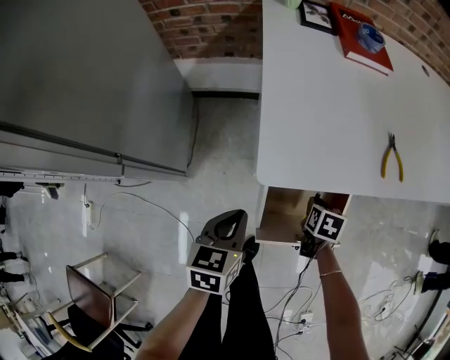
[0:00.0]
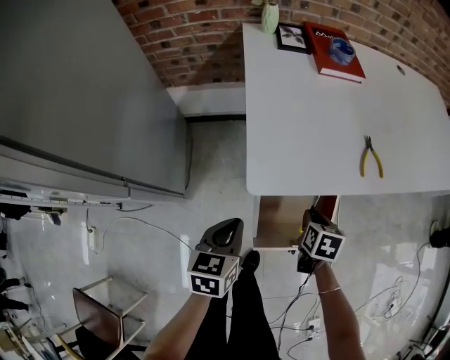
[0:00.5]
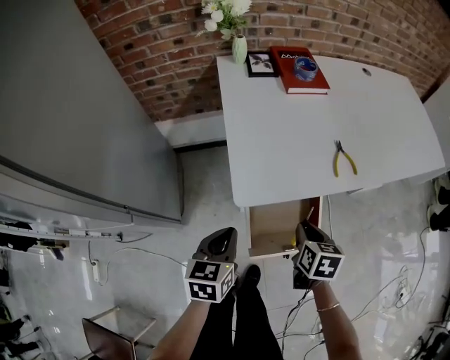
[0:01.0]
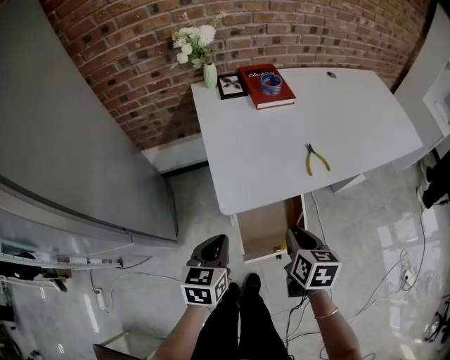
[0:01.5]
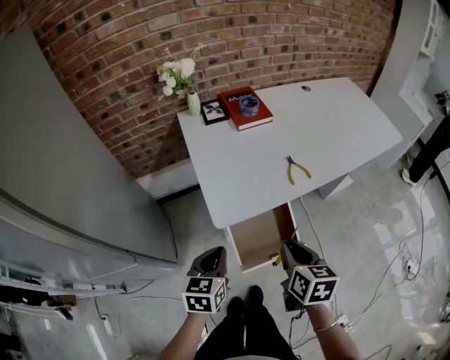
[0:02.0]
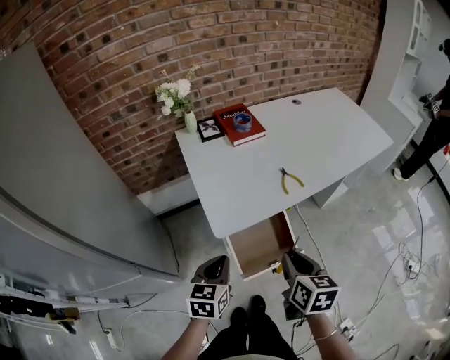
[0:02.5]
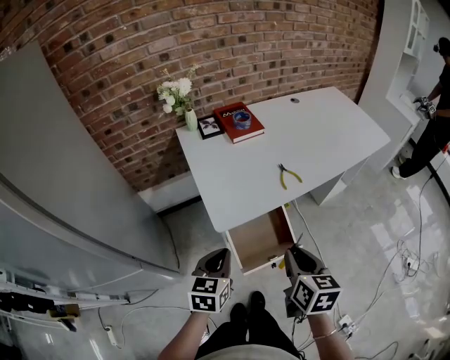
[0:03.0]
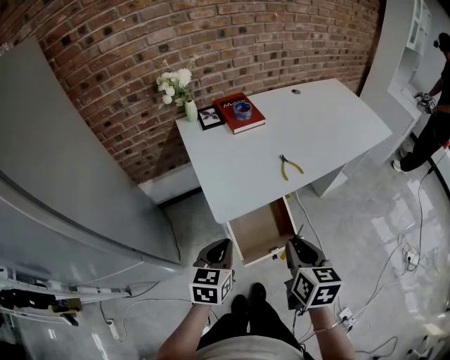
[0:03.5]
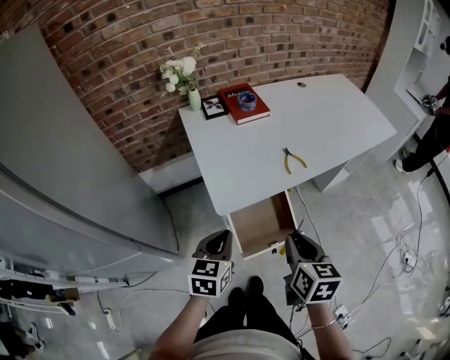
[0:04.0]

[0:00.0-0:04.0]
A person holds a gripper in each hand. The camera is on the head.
0:00.0 to 0:02.0: The left gripper shifts roughly 15 cm upward, and changes its angle by roughly 20 degrees; the right gripper travels upward and backward by approximately 35 cm, and turns by some 30 degrees.
0:02.0 to 0:04.0: The right gripper ends up about 5 cm from where it was.

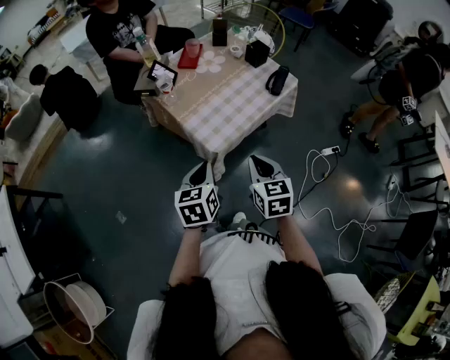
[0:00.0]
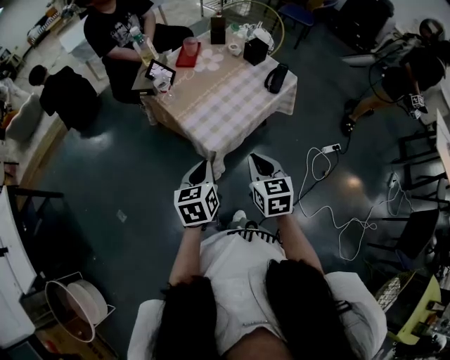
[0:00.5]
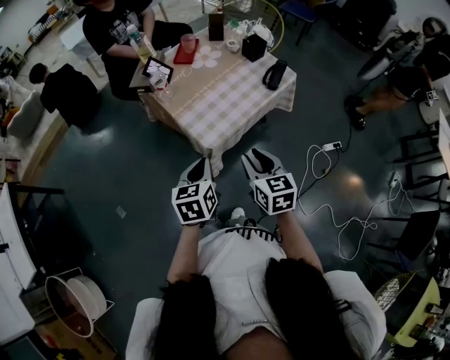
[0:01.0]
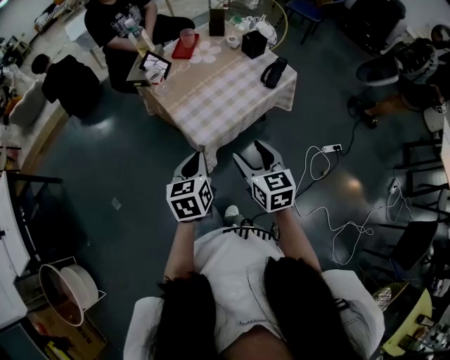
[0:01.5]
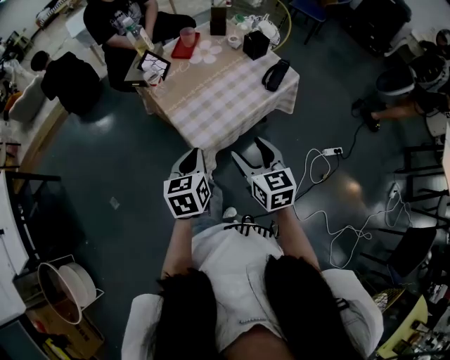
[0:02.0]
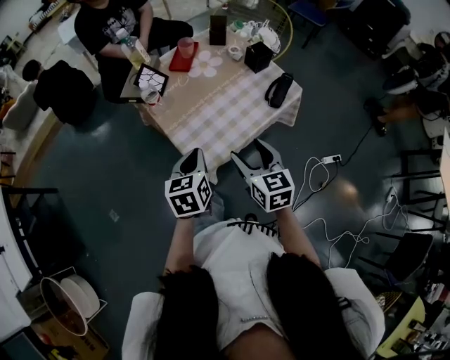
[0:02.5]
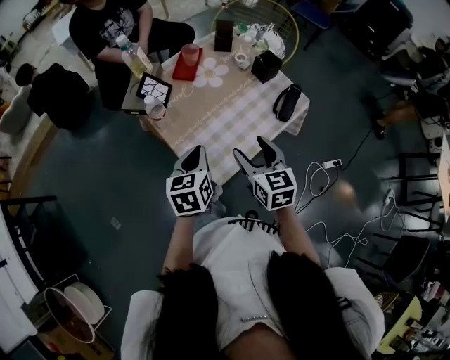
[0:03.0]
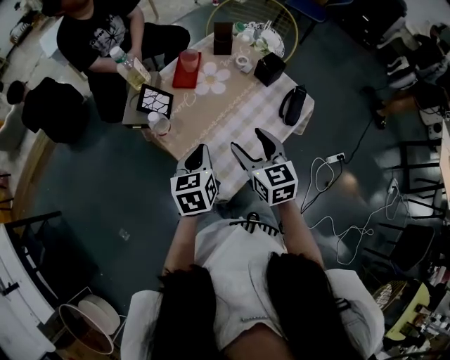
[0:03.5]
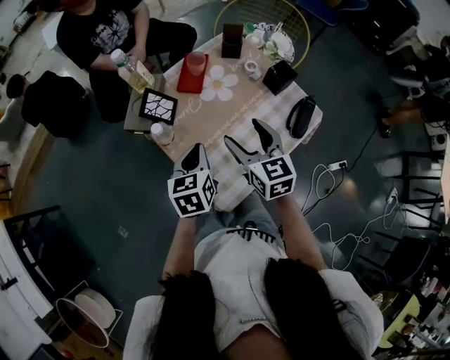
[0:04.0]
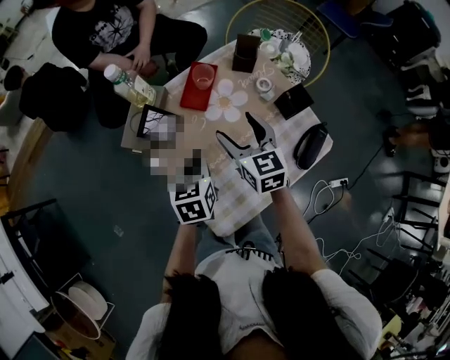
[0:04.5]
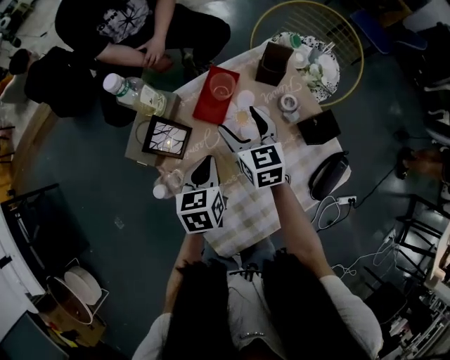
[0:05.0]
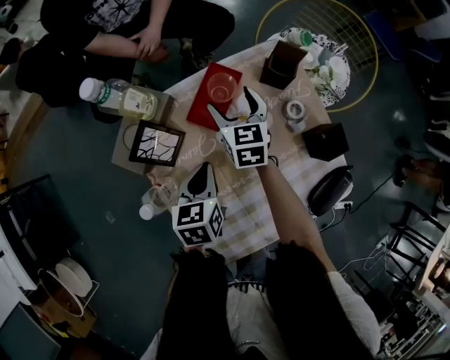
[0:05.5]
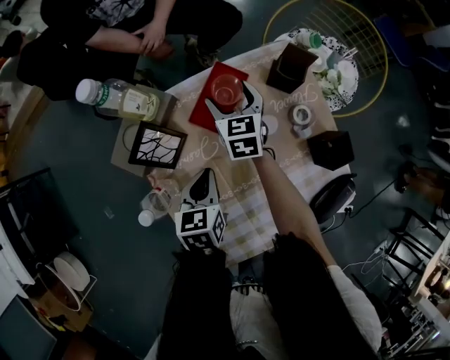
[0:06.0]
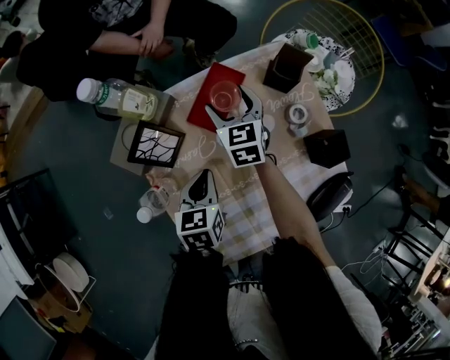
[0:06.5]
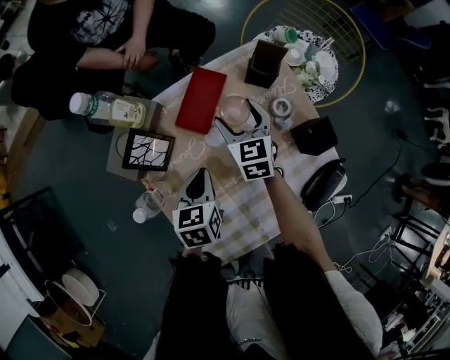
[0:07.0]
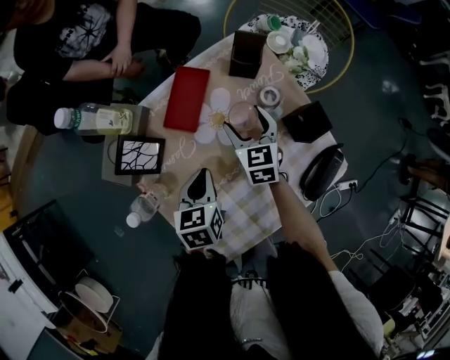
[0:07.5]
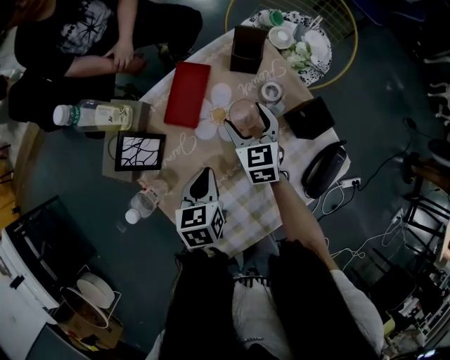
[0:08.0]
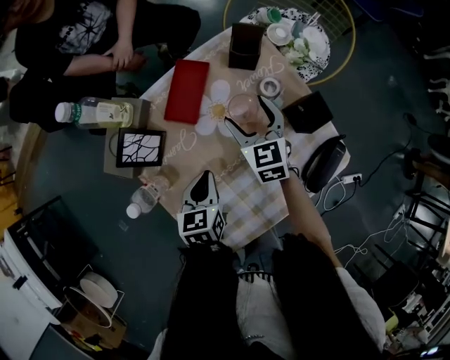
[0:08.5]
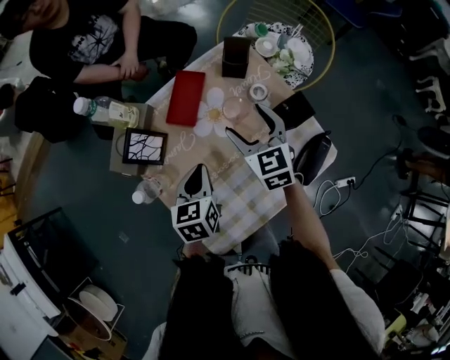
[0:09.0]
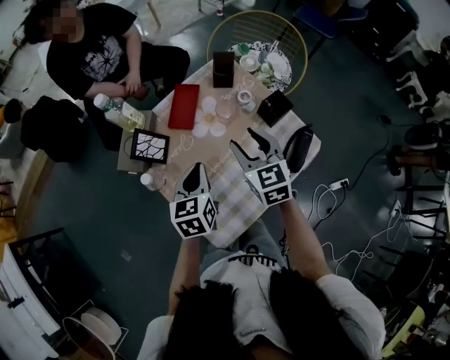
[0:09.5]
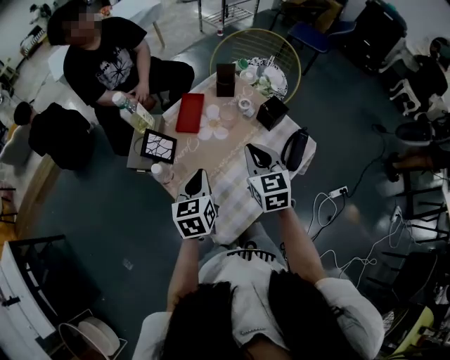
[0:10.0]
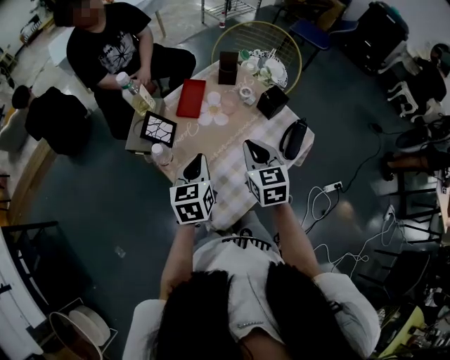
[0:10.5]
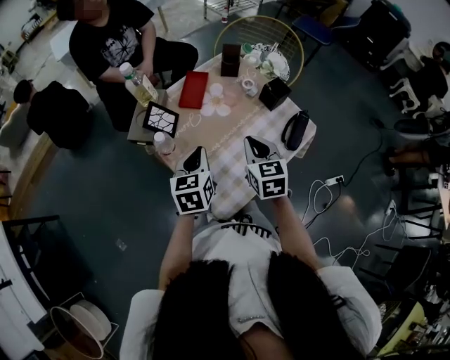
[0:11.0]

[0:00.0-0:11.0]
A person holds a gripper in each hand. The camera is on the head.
0:00.0 to 0:02.0: The left gripper ends up some 5 cm from where it was, while the right gripper changes place by approximately 5 cm, and opens up.
0:02.0 to 0:03.5: Both grippers move forward, about 25 cm.
0:03.5 to 0:05.5: The right gripper moves forward, approximately 40 cm, while the left gripper moves forward and downward, about 25 cm, and rotates some 20 degrees.
0:05.5 to 0:07.5: The left gripper changes place by approximately 5 cm. Meanwhile the right gripper is displaced to the right and backward by some 15 cm.
0:07.5 to 0:09.0: The left gripper shifts by roughly 5 cm. The right gripper travels upward and backward by about 10 cm.
0:09.0 to 0:11.0: The right gripper heads backward, covering some 20 cm, and closes up; the left gripper shifts approximately 15 cm backward and upward.

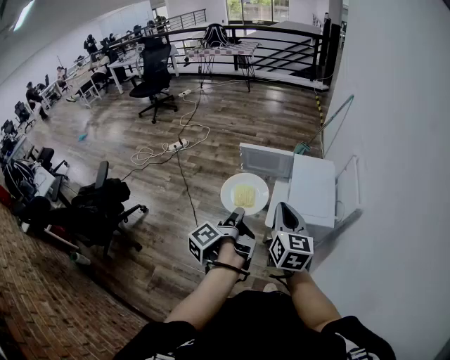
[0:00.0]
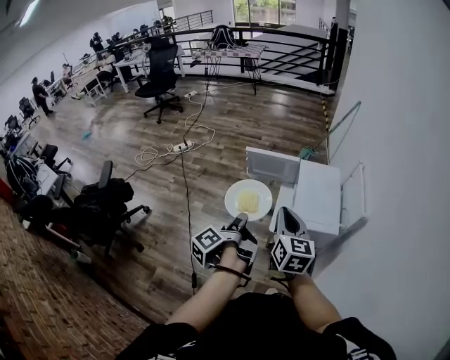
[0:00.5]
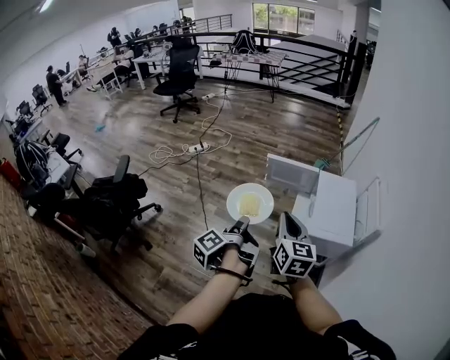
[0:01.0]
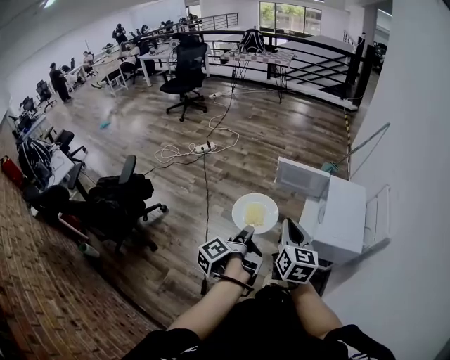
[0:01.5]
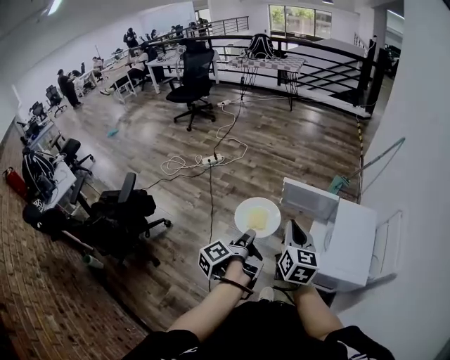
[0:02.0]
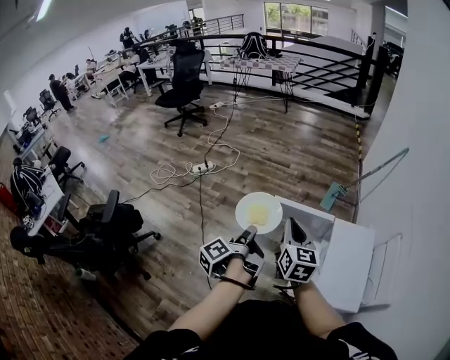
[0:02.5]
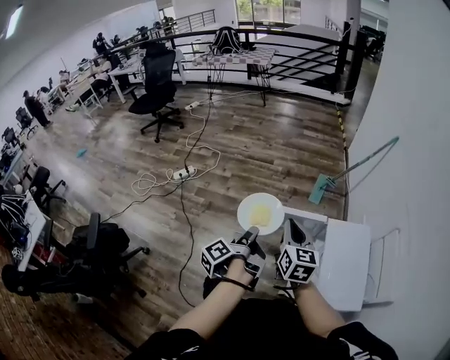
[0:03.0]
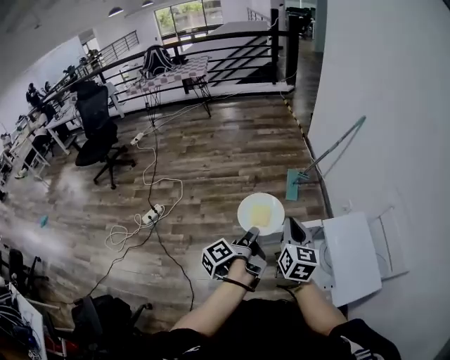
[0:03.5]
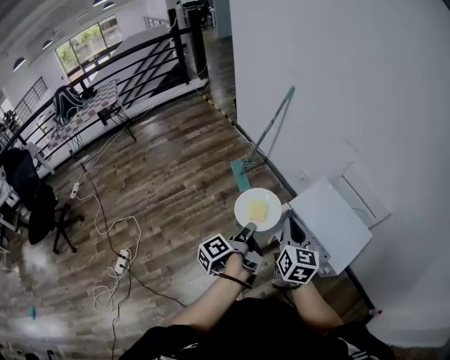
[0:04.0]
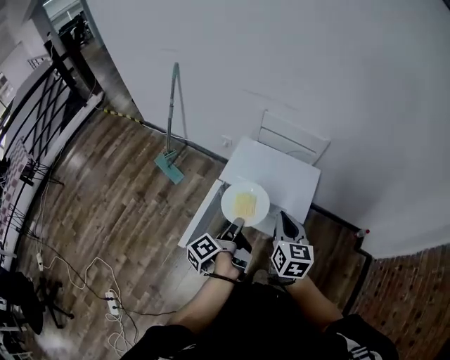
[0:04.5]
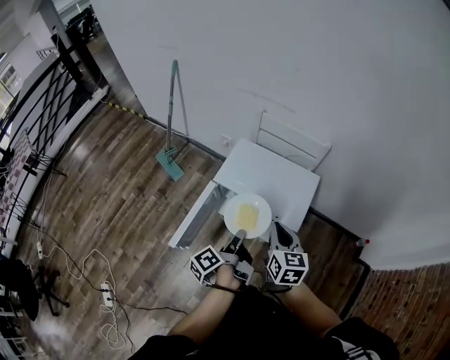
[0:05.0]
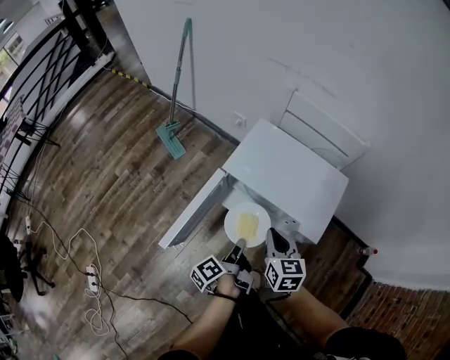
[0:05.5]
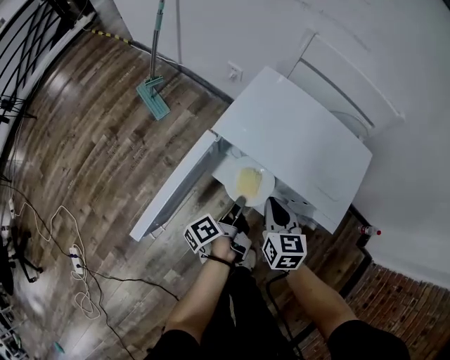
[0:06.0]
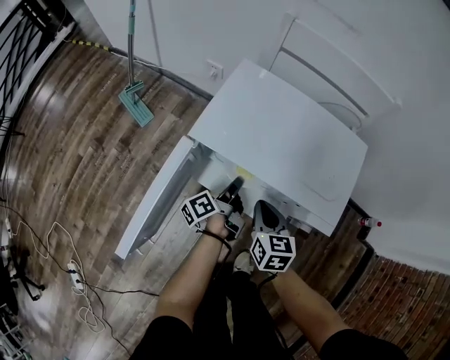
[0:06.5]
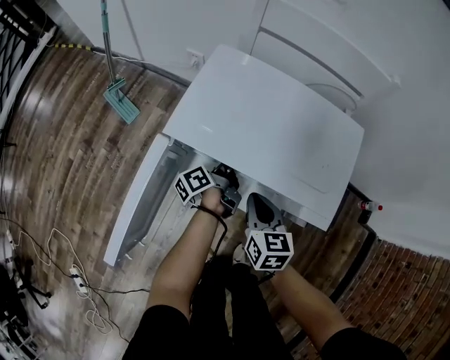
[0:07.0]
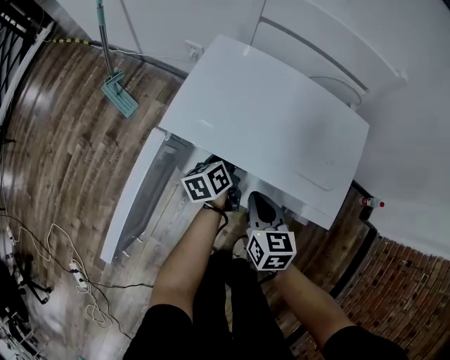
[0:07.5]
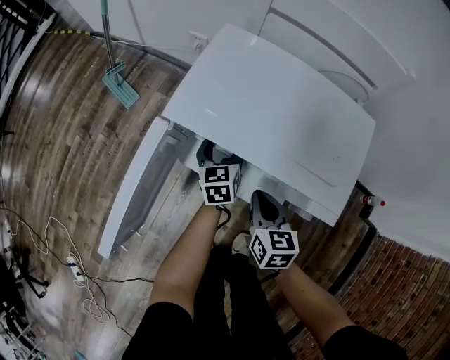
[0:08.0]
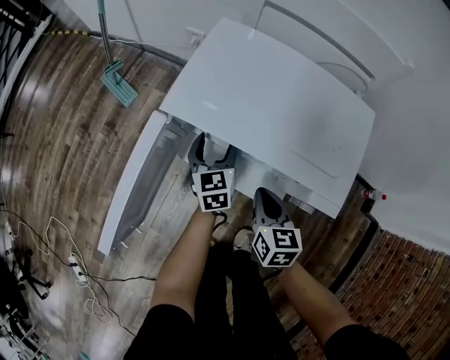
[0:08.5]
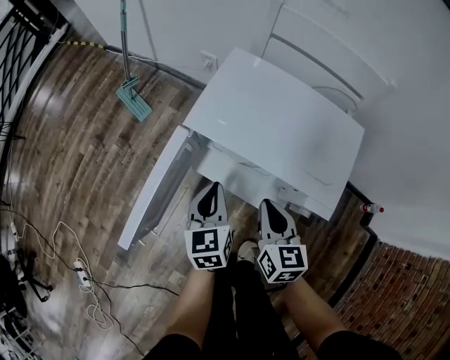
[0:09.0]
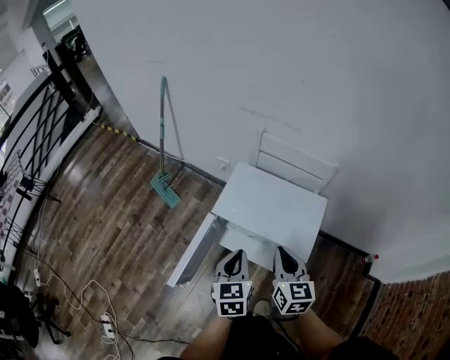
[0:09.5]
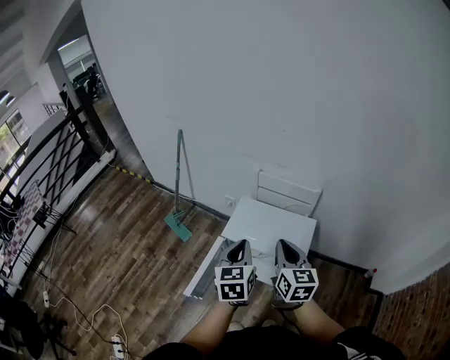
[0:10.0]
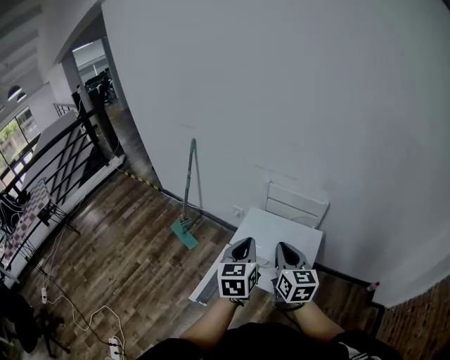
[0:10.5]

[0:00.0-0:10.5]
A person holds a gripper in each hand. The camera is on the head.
0:00.0 to 0:02.0: The right gripper changes place by about 20 cm.
0:02.0 to 0:04.0: The right gripper ends up some 35 cm from where it was, and rotates approximately 60 degrees.
0:04.0 to 0:06.5: The right gripper goes about 40 cm downward, and turns by some 30 degrees.
0:08.5 to 0:10.5: The right gripper is displaced upward by roughly 50 cm, and rotates some 30 degrees.

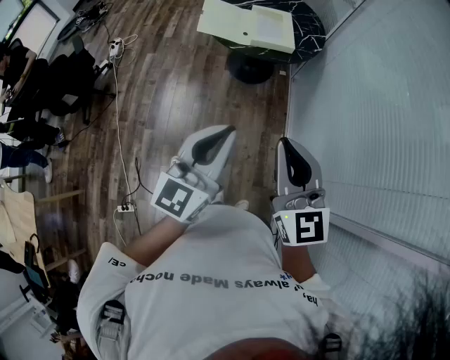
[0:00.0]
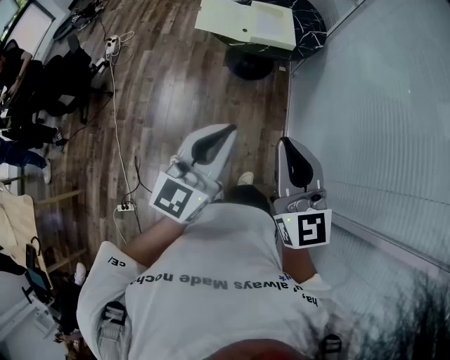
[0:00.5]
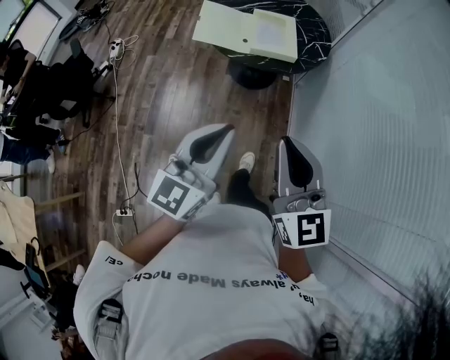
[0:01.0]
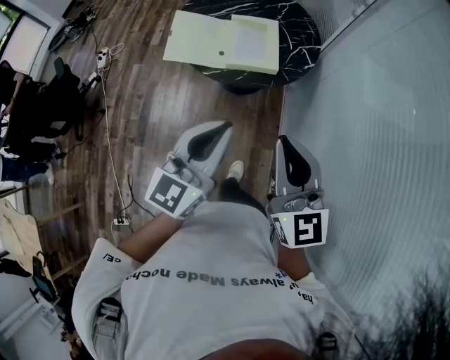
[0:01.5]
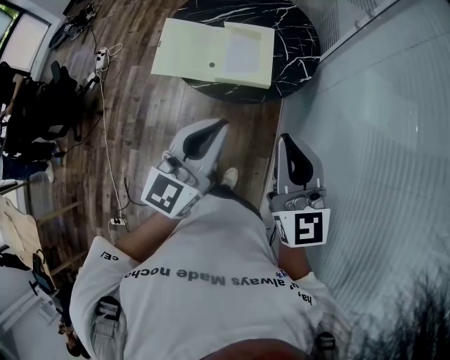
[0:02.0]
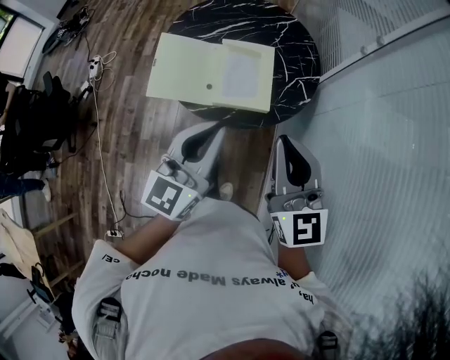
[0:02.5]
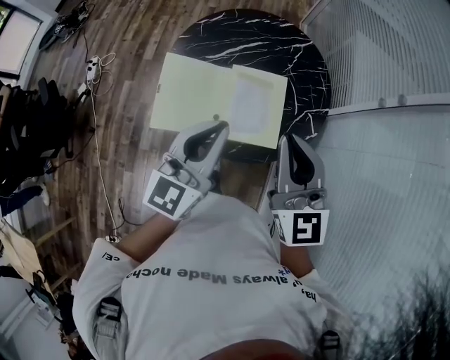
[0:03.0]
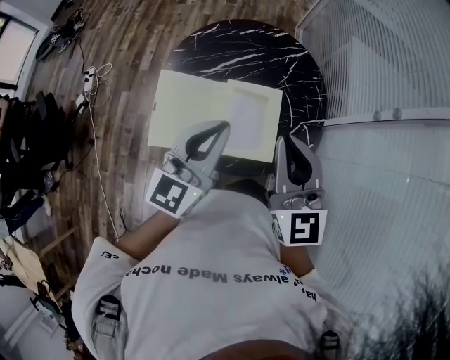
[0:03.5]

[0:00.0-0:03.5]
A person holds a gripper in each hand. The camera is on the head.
0:00.0 to 0:02.0: The pair of grippers is taken forward, approximately 40 cm.
0:02.0 to 0:03.5: The two grippers go about 35 cm forward.
